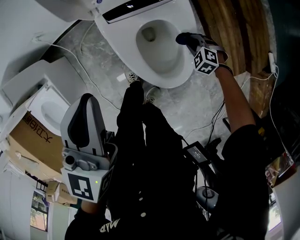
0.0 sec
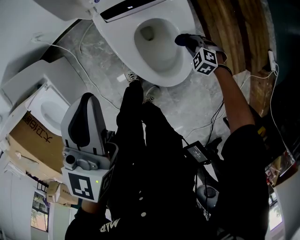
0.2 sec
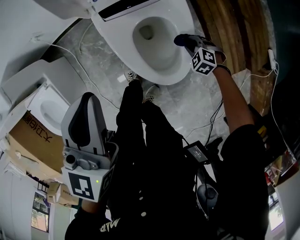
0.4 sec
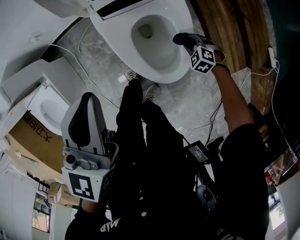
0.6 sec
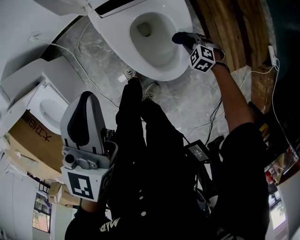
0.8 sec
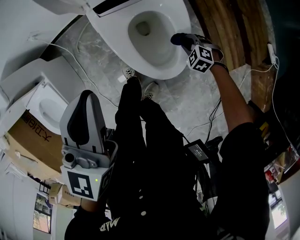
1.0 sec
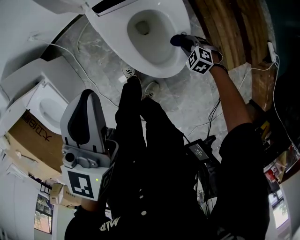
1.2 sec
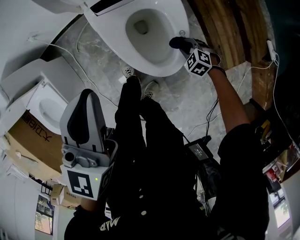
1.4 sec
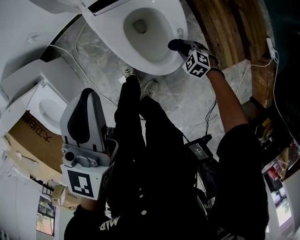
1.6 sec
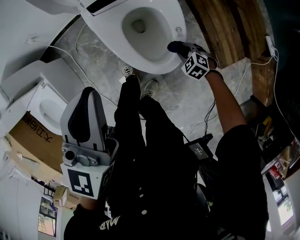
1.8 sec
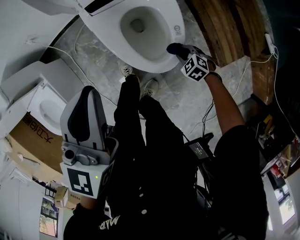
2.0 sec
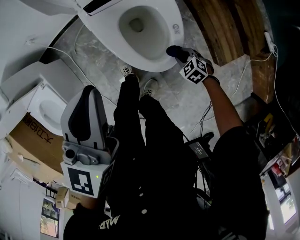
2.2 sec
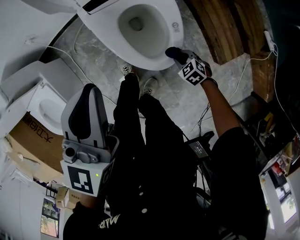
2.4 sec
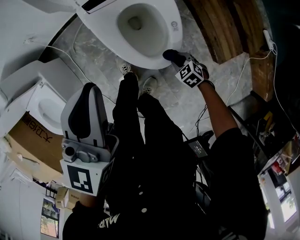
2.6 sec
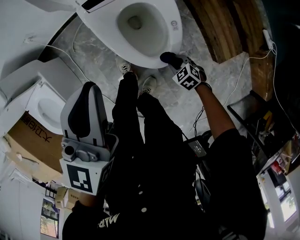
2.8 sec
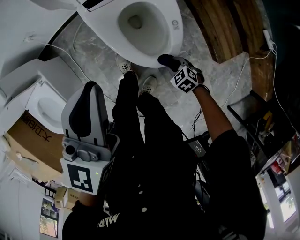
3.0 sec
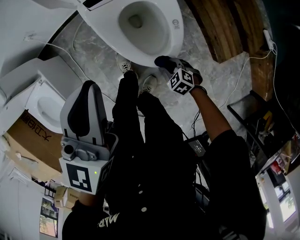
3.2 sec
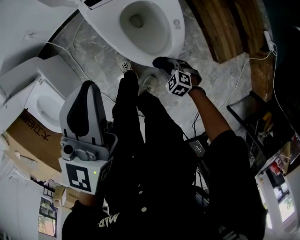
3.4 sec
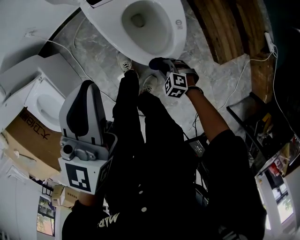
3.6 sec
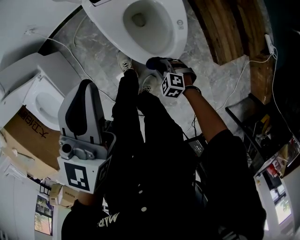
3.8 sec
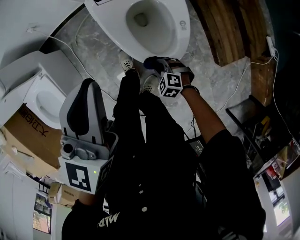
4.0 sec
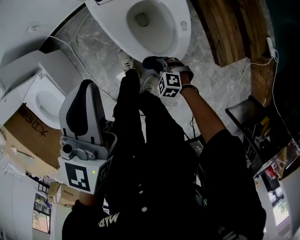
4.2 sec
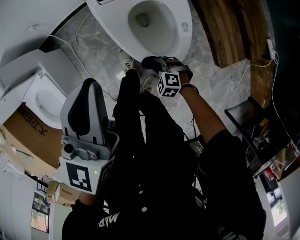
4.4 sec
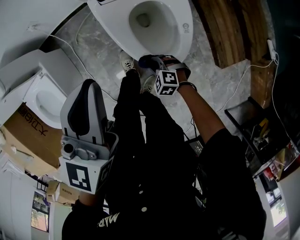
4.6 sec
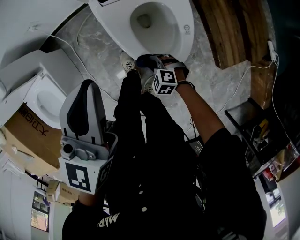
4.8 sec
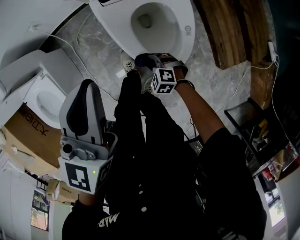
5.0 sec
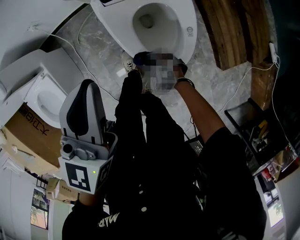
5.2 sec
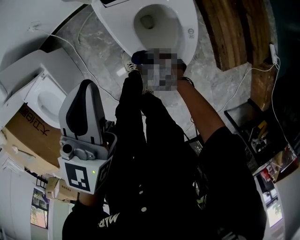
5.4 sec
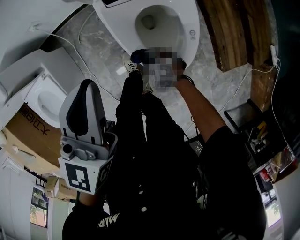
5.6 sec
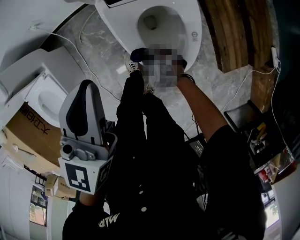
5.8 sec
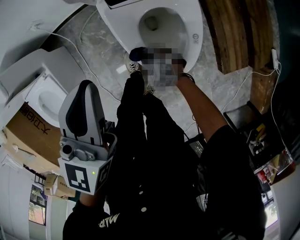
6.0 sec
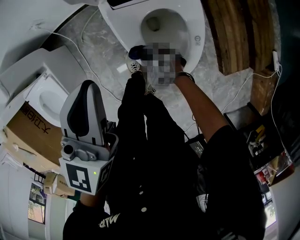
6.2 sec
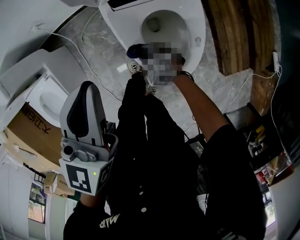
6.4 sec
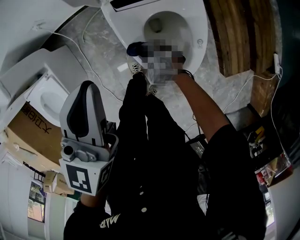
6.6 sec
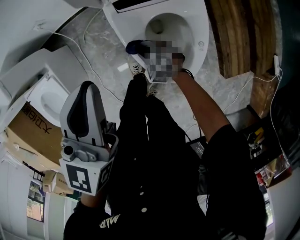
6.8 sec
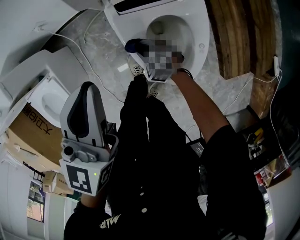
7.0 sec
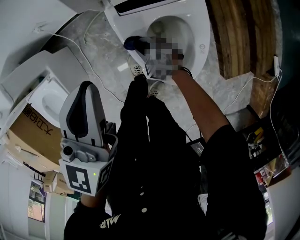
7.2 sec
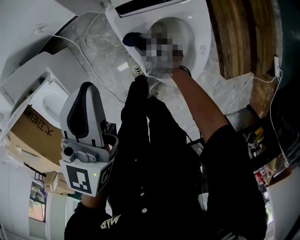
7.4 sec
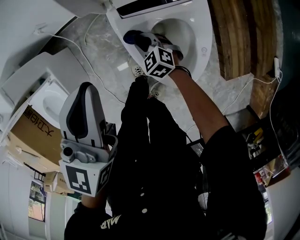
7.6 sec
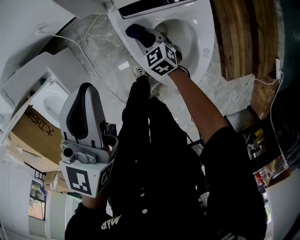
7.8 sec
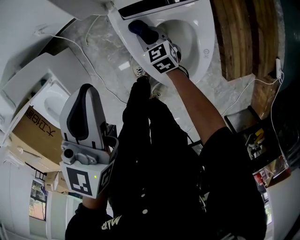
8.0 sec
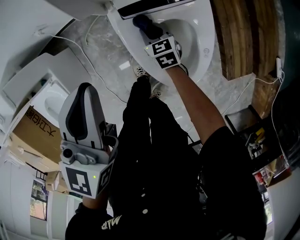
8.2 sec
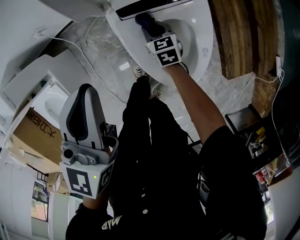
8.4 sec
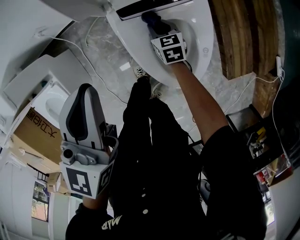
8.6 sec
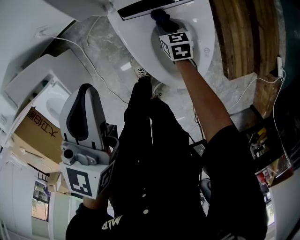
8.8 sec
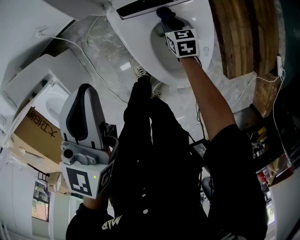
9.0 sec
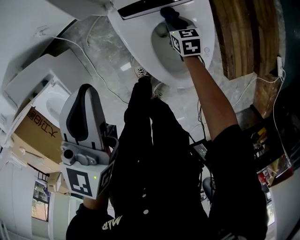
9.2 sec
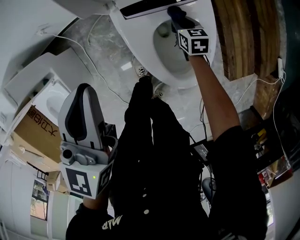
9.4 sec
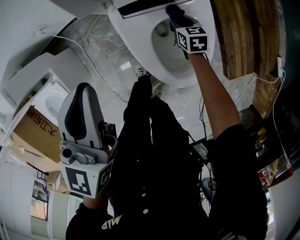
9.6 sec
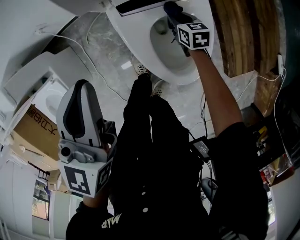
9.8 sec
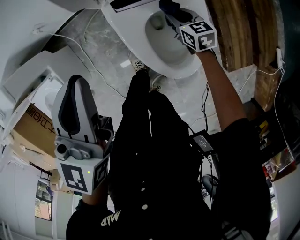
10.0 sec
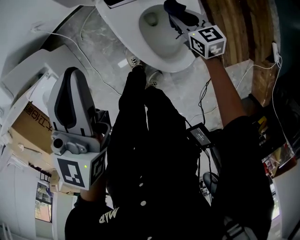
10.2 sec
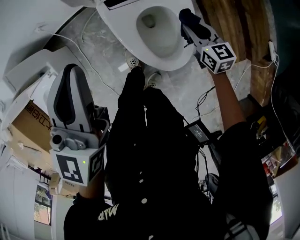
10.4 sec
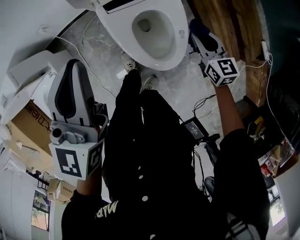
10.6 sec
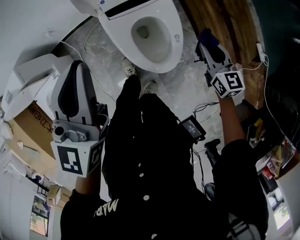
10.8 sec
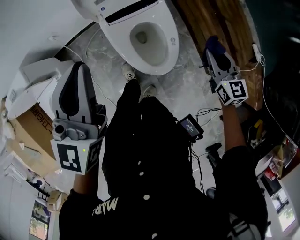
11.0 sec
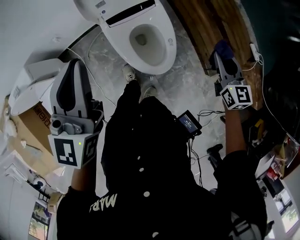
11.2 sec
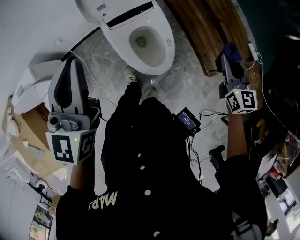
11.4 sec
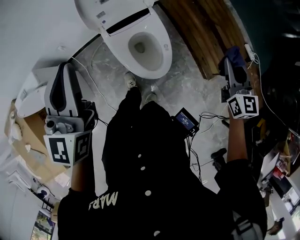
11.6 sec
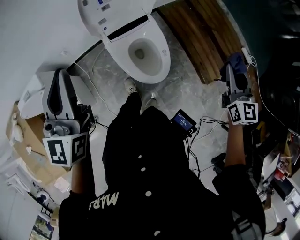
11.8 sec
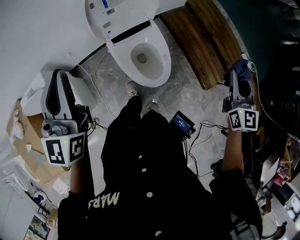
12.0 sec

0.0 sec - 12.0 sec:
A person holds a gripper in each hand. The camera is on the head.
0.0 sec - 1.6 sec: The right gripper changes place by some 10 cm, while the left gripper changes place by approximately 10 cm.
1.6 sec - 3.0 sec: The right gripper shifts roughly 10 cm backward and to the left.
3.0 sec - 4.4 sec: The right gripper travels to the left by about 10 cm, and rotates approximately 30 degrees.
4.4 sec - 6.0 sec: The left gripper goes roughly 5 cm forward. The right gripper heads forward, covering some 10 cm.
6.0 sec - 7.6 sec: The right gripper travels forward by some 15 cm; the left gripper moves forward, roughly 5 cm.
7.6 sec - 9.0 sec: The right gripper goes approximately 15 cm to the right and forward, and rotates about 40 degrees.
9.0 sec - 10.4 sec: The left gripper heads upward, covering roughly 10 cm. Meanwhile the right gripper heads upward, to the right and backward, covering approximately 20 cm.
10.4 sec - 12.0 sec: The right gripper shifts approximately 50 cm upward, backward and to the right, and turns by about 40 degrees. Meanwhile the left gripper moves upward and backward, about 30 cm, and changes its angle by about 20 degrees.

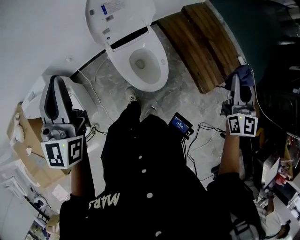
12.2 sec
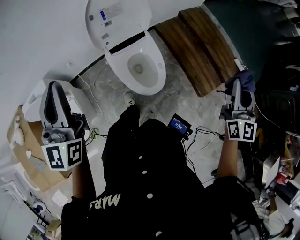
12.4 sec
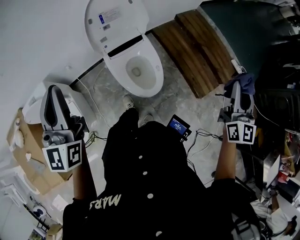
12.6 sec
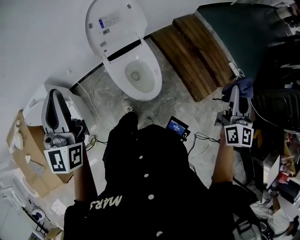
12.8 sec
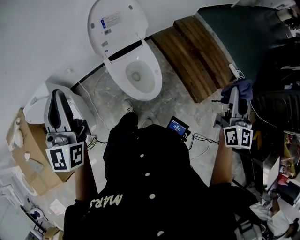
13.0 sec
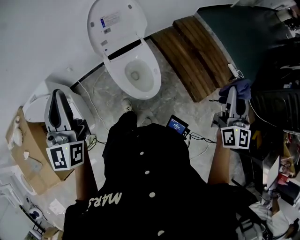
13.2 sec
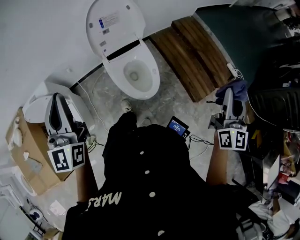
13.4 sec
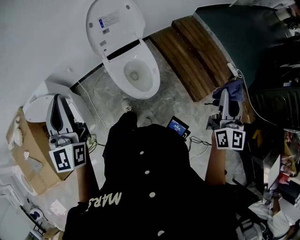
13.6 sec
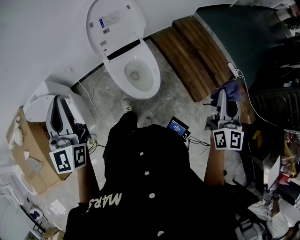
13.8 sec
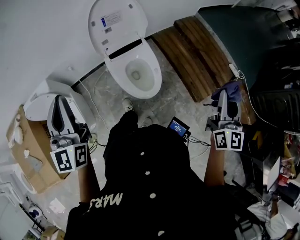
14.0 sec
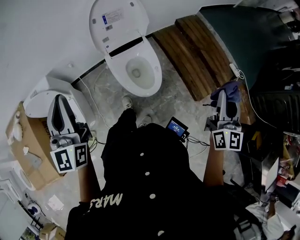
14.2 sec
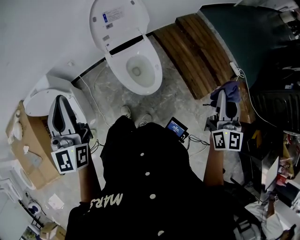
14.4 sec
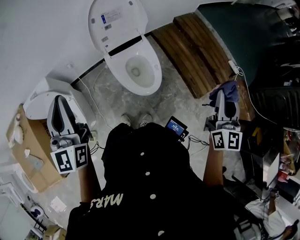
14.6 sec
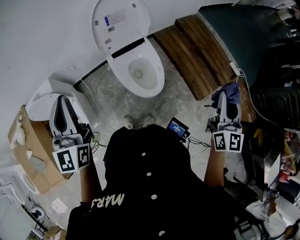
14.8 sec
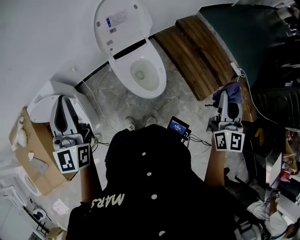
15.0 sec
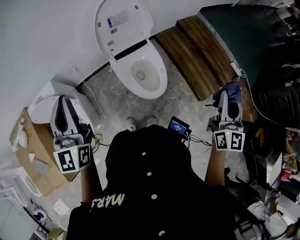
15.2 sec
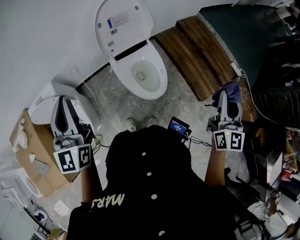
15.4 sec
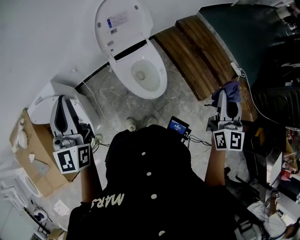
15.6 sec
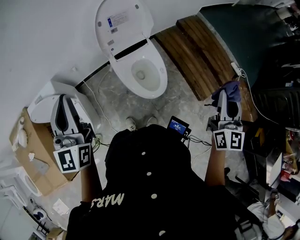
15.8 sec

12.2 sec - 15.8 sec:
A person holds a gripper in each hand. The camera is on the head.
12.2 sec - 14.0 sec: Both grippers move backward, about 10 cm.
14.0 sec - 15.8 sec: The right gripper is displaced to the left by roughly 5 cm.

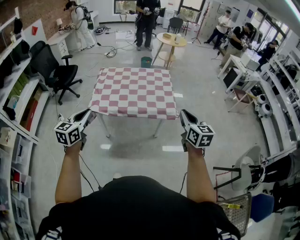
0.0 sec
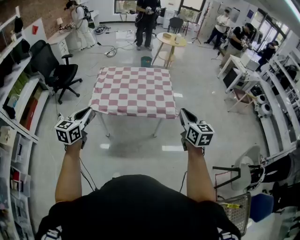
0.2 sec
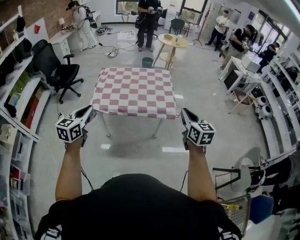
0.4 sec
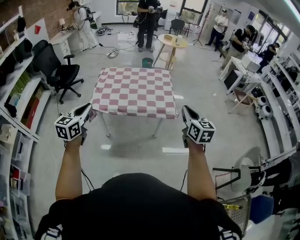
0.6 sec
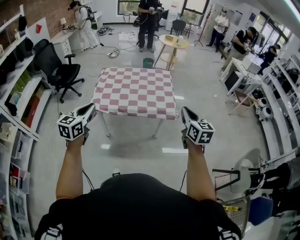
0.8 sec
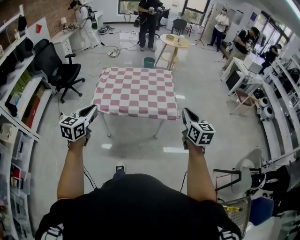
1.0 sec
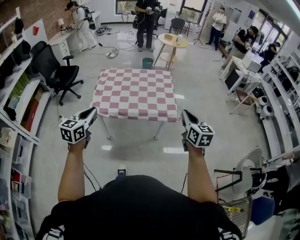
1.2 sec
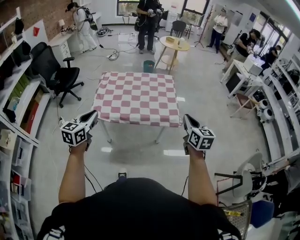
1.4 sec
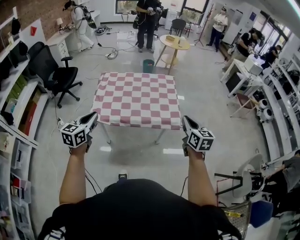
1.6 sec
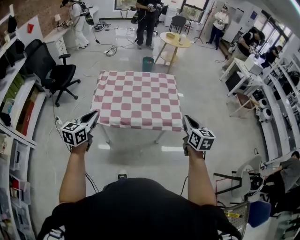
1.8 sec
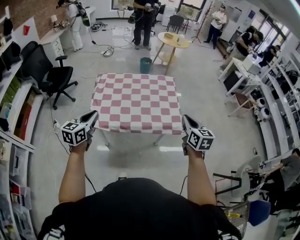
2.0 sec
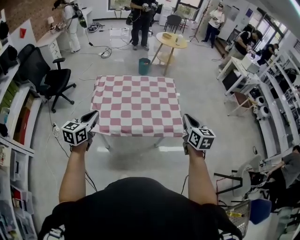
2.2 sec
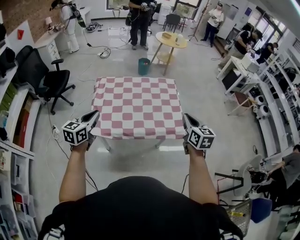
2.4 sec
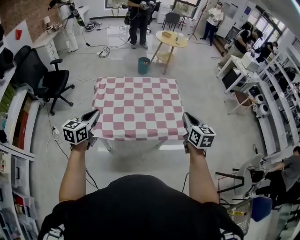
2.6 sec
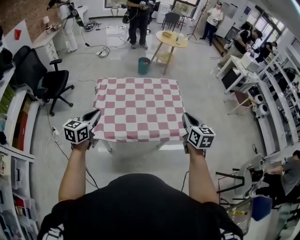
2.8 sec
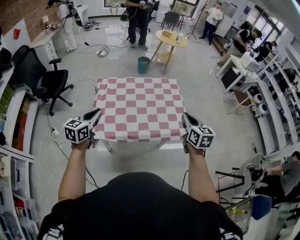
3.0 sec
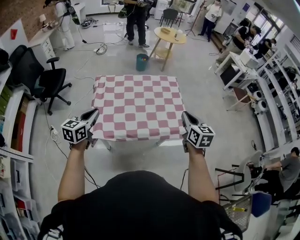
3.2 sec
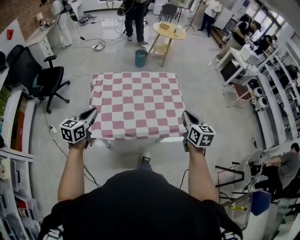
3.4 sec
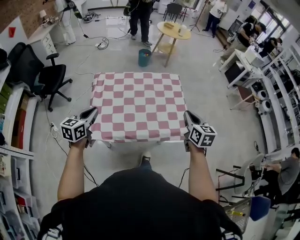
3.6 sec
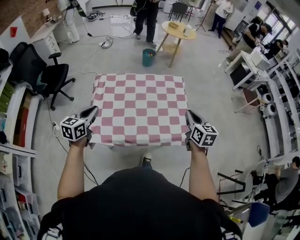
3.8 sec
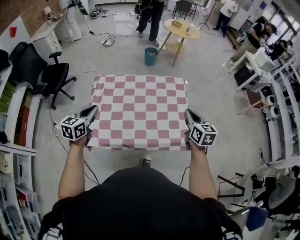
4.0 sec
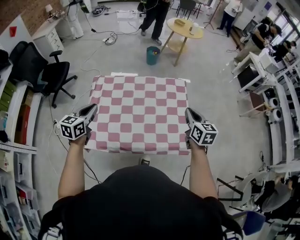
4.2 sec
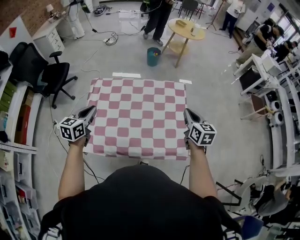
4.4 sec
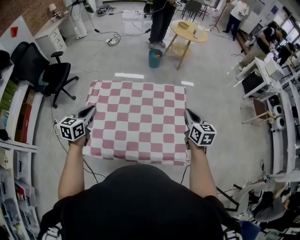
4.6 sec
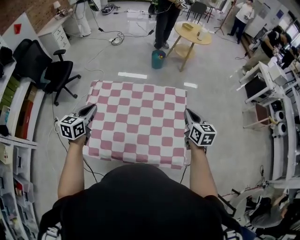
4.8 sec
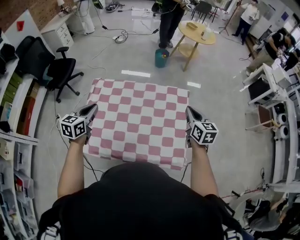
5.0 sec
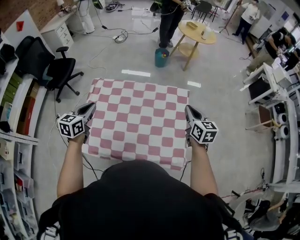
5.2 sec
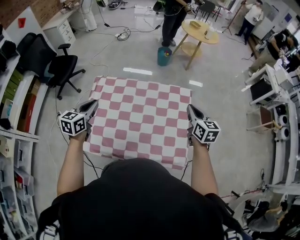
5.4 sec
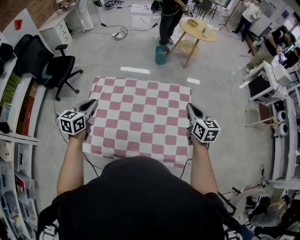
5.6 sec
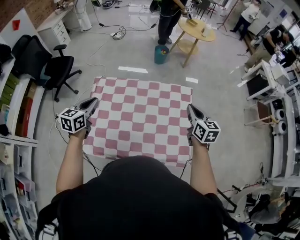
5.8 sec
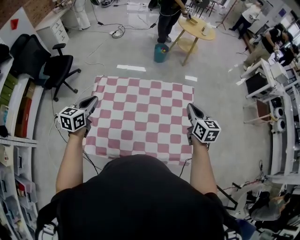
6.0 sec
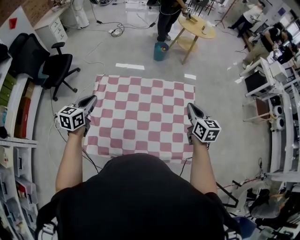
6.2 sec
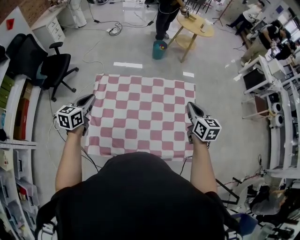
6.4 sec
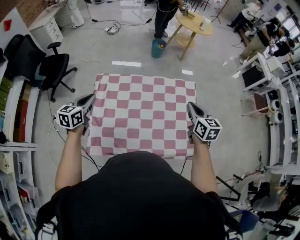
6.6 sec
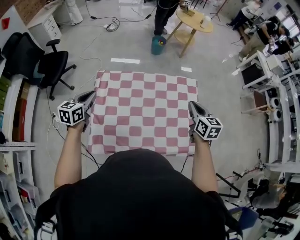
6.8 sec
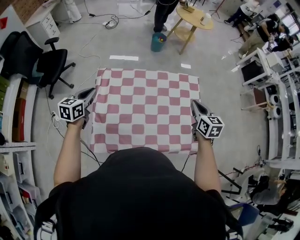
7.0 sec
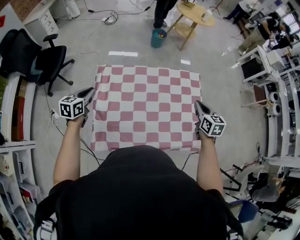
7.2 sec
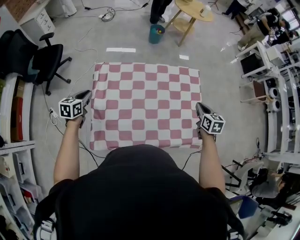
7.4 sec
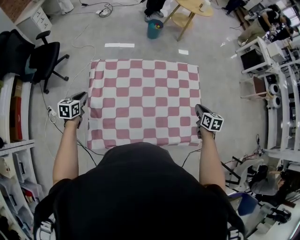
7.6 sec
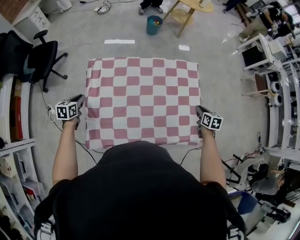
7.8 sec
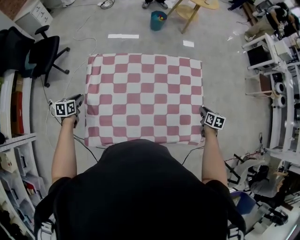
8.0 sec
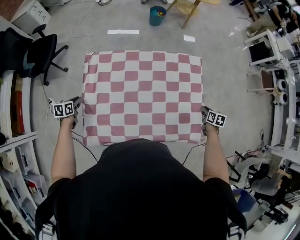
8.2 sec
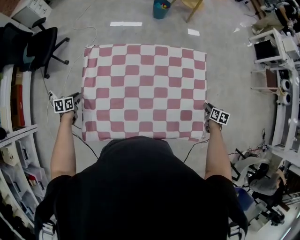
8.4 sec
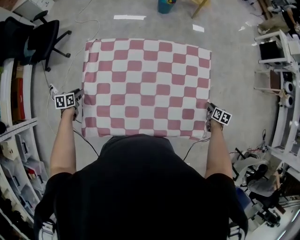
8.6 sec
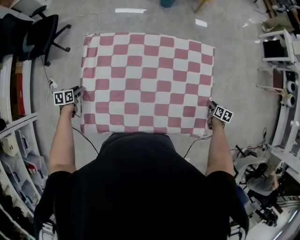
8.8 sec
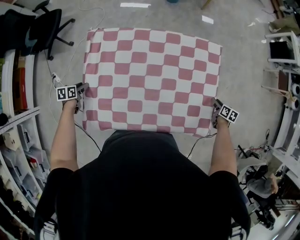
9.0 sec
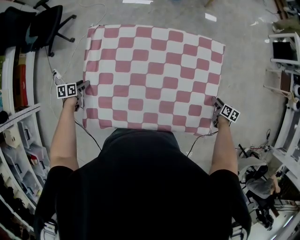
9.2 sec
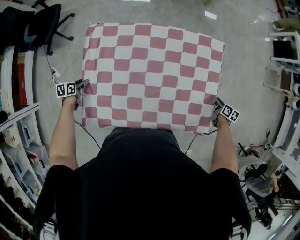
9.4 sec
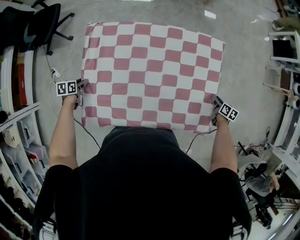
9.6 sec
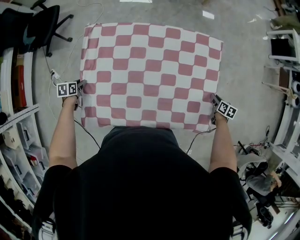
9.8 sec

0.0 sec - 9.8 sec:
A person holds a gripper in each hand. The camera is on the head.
0.0 sec - 1.4 sec: Both grippers move forward, some 5 cm.
1.4 sec - 2.8 sec: Both grippers move forward and to the left, about 20 cm.
2.8 sec - 4.2 sec: Both grippers travel together forward, about 30 cm.
4.2 sec - 5.6 sec: Both grippers travel together forward, approximately 15 cm.
5.6 sec - 7.0 sec: Both grippers travel together to the left, about 15 cm.
7.0 sec - 8.4 sec: The right gripper heads downward and to the right, covering some 40 cm, rotates approximately 30 degrees, and opens its fingers. Meanwhile the left gripper is displaced downward by some 25 cm, and rotates some 30 degrees.
8.4 sec - 9.8 sec: The two grippers go some 10 cm downward.
